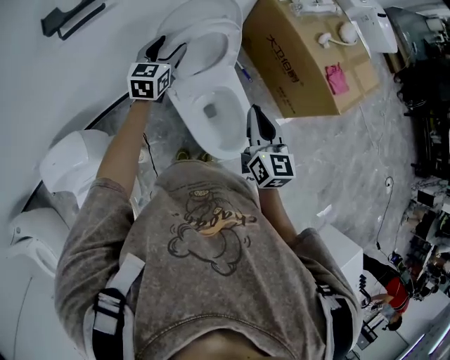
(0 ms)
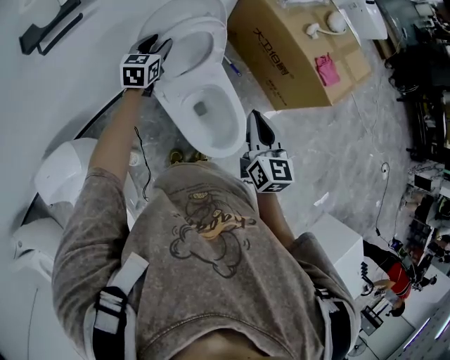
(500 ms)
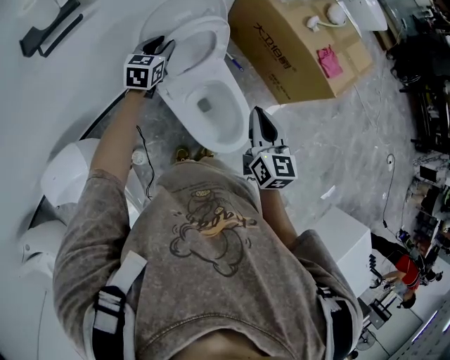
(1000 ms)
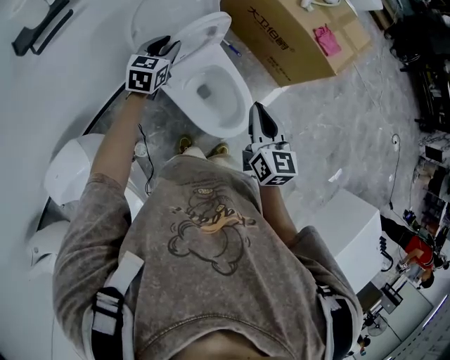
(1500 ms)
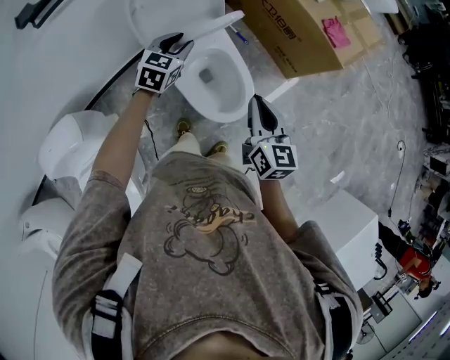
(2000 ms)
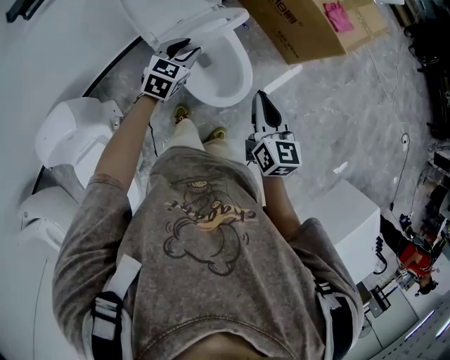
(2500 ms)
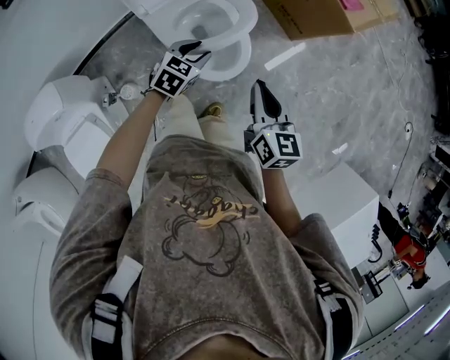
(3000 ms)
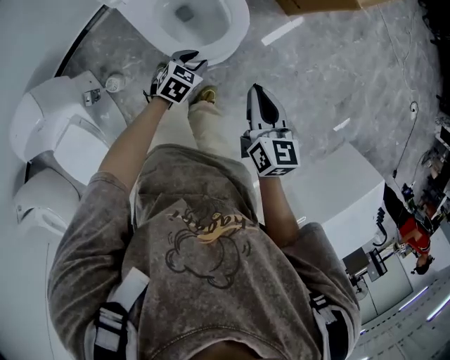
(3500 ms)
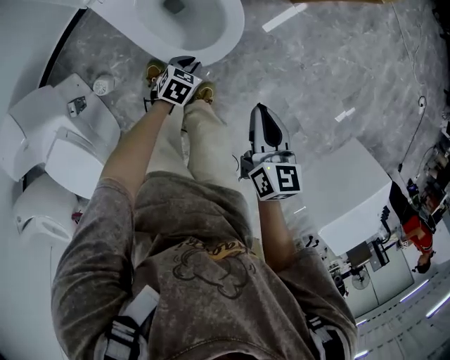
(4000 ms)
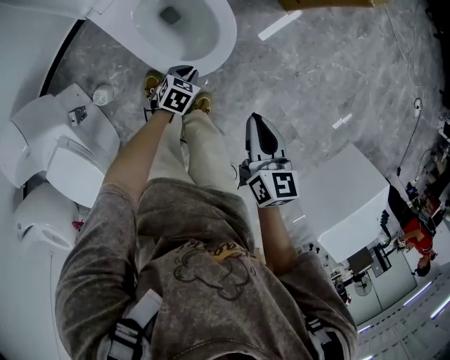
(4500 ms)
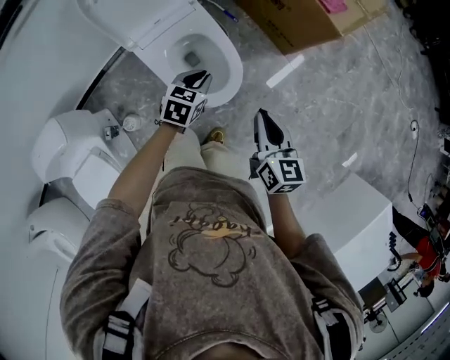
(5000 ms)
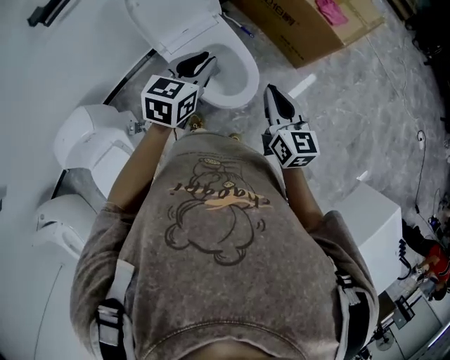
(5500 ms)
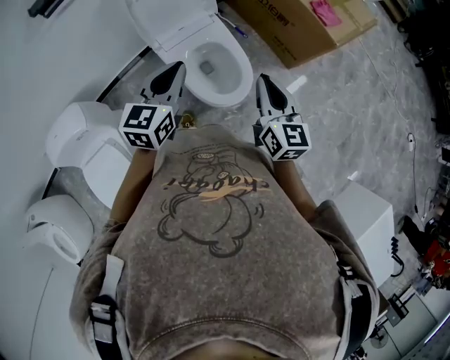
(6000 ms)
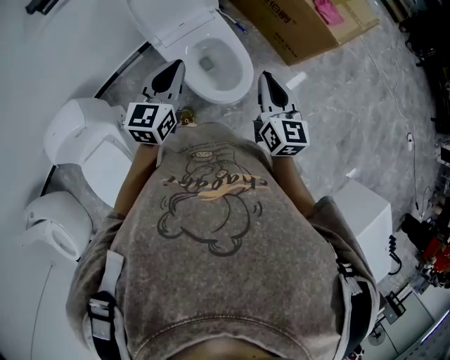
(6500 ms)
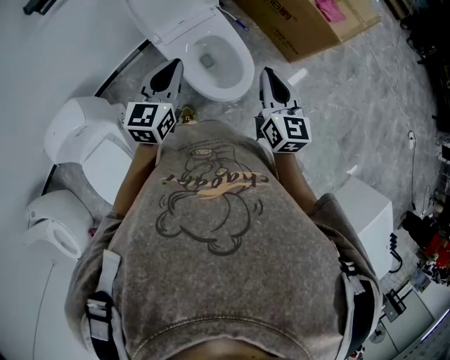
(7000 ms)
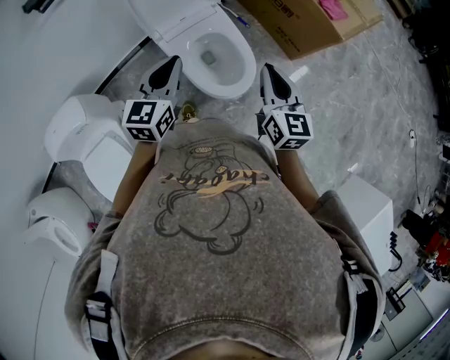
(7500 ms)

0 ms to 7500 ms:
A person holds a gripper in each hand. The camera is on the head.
0 ms to 2000 ms: The left gripper travels to the right, backward and downward by approximately 15 cm, turns by roughly 20 degrees, and closes; the right gripper moves backward and to the right, approximately 10 cm.
2000 ms to 4000 ms: The left gripper goes about 50 cm downward, to the right and backward, and changes its angle by about 40 degrees. Meanwhile the right gripper heads downward and to the right, covering some 30 cm, and changes its angle by roughly 20 degrees.
4000 ms to 5500 ms: The right gripper shifts about 25 cm upward, and rotates roughly 20 degrees; the left gripper shifts roughly 50 cm upward, and tips its fingers upward by roughly 30 degrees.
5500 ms to 7500 ms: The left gripper is displaced to the left by approximately 10 cm.

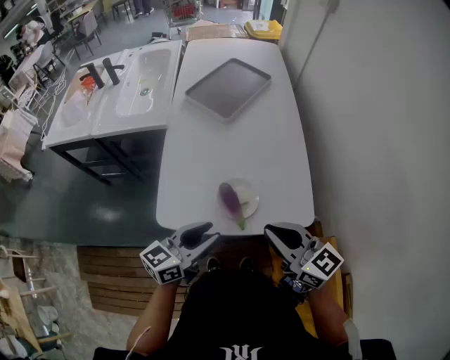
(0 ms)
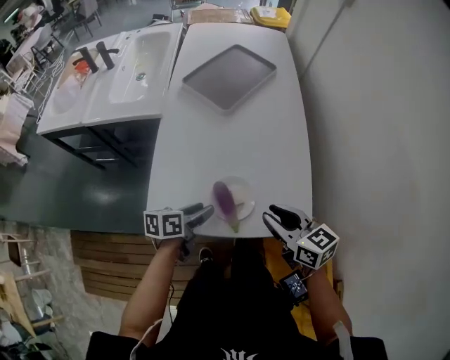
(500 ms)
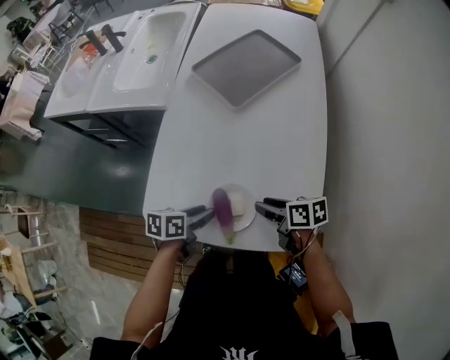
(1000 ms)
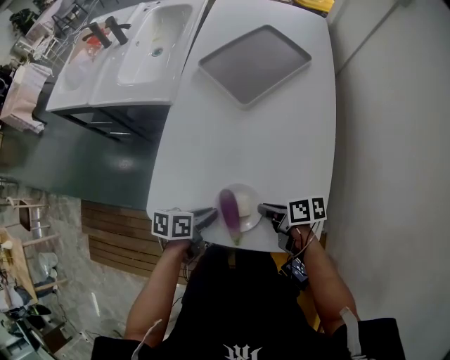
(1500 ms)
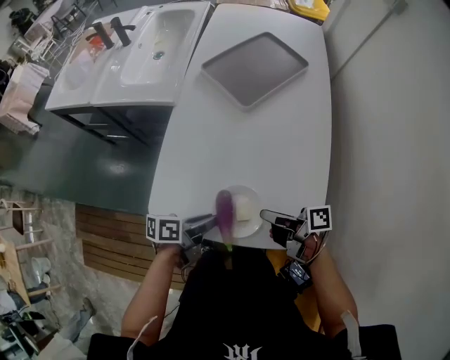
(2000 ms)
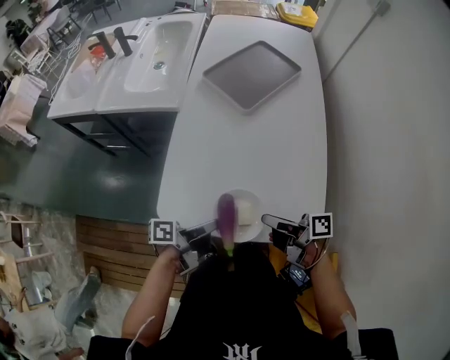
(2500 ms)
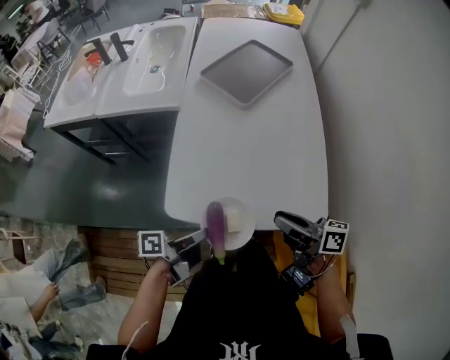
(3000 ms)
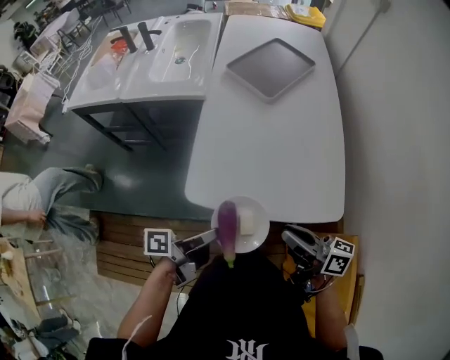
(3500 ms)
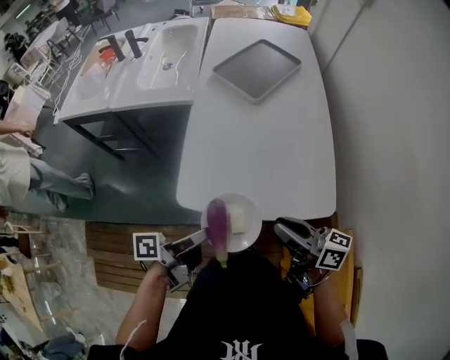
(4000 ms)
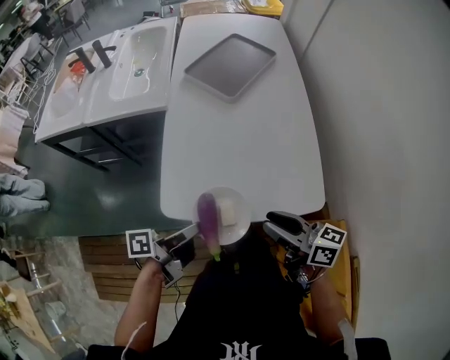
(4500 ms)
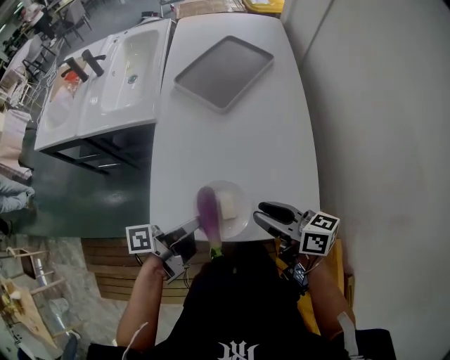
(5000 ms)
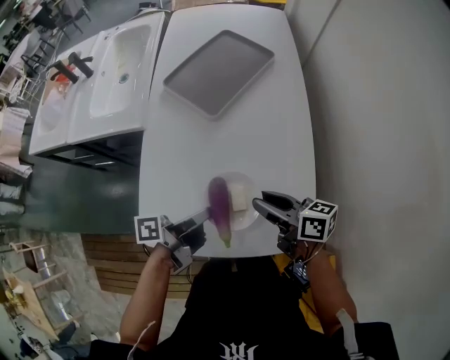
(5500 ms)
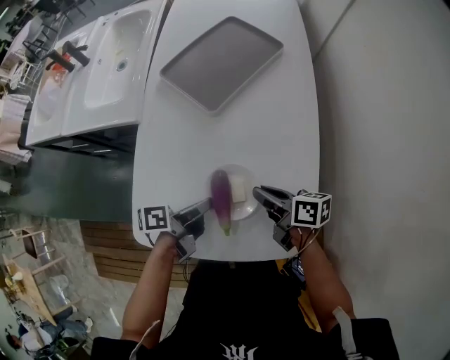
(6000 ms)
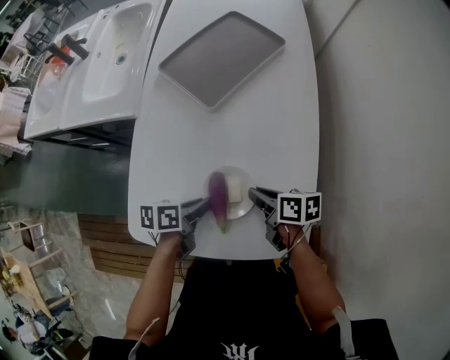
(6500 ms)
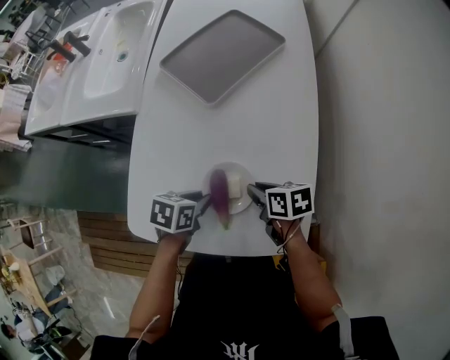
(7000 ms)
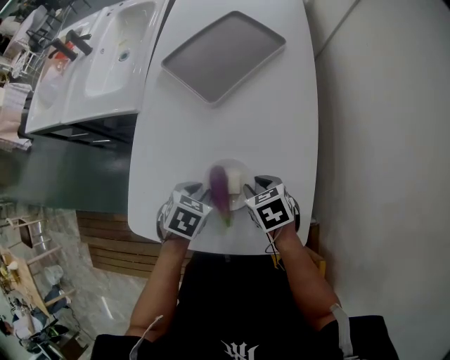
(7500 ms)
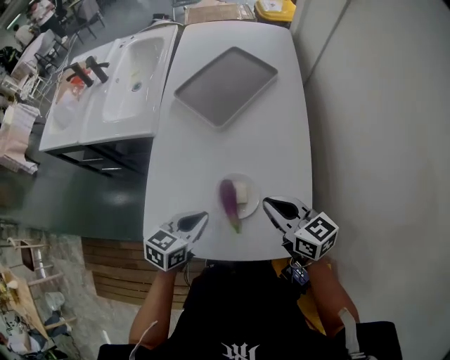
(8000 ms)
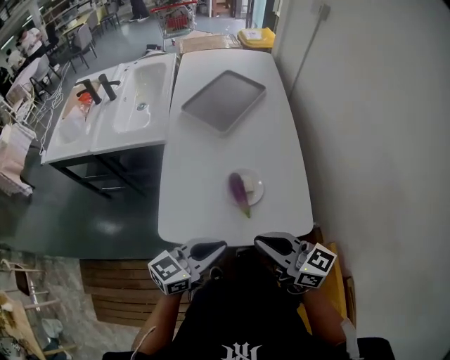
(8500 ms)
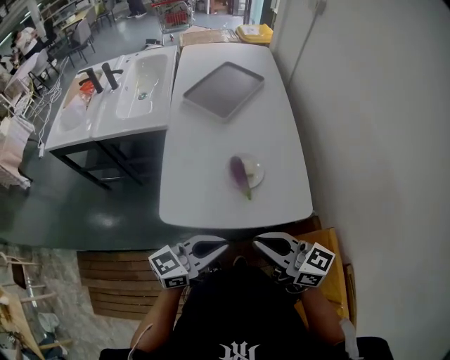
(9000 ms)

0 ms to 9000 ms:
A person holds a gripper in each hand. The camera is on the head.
0 ms to 2000 ms: The right gripper goes roughly 15 cm downward, rotates around the line of its fingers by about 70 degrees, clockwise from behind, and opens and closes again.
2000 ms to 4500 ms: The right gripper ends up approximately 15 cm from where it was, swivels about 40 degrees, and opens its fingers.
4500 ms to 7000 ms: The right gripper changes place by approximately 30 cm, and tips its fingers downward by roughly 40 degrees.
7000 ms to 9000 ms: The right gripper ends up about 40 cm from where it was, and tips its fingers upward by about 40 degrees.

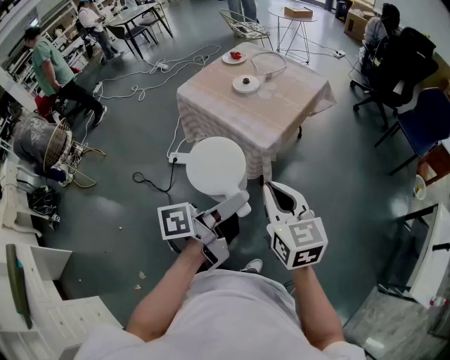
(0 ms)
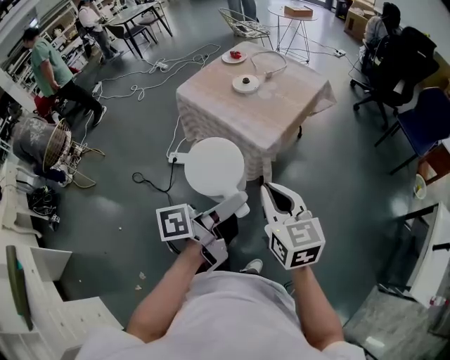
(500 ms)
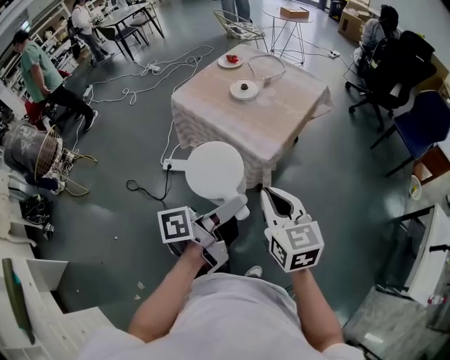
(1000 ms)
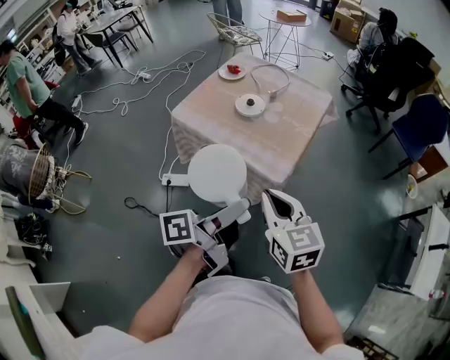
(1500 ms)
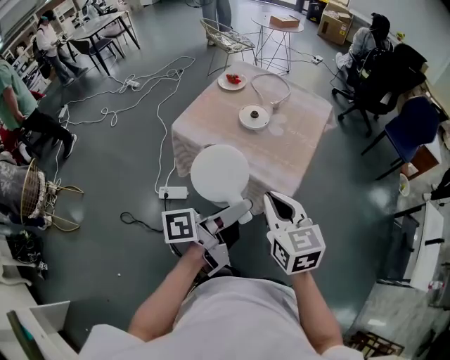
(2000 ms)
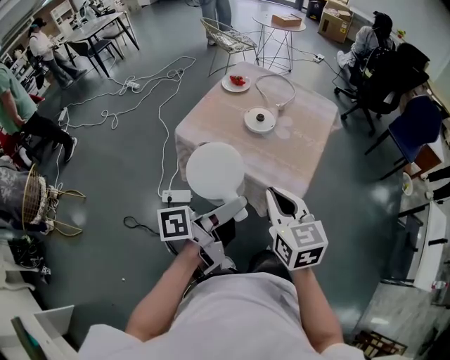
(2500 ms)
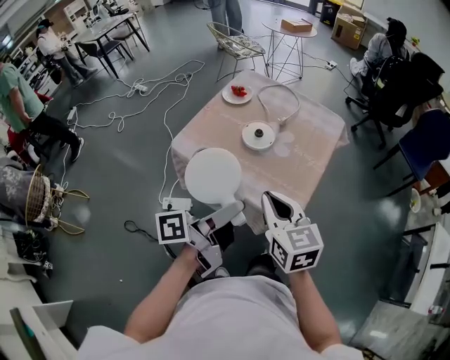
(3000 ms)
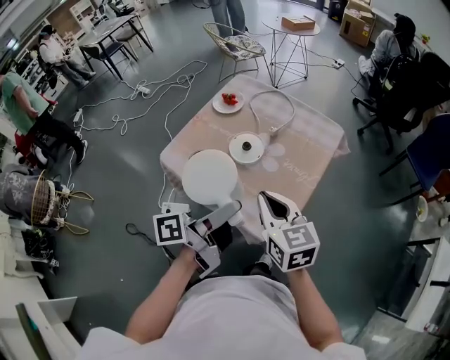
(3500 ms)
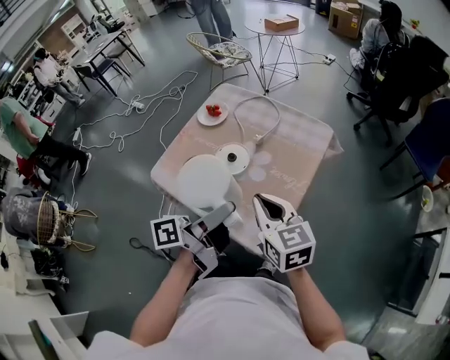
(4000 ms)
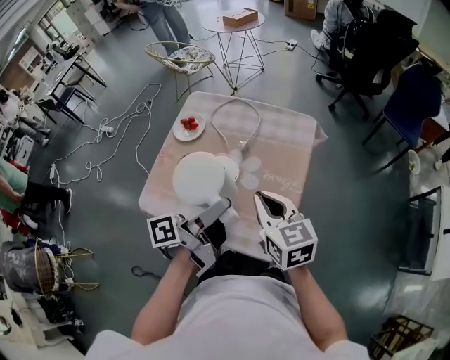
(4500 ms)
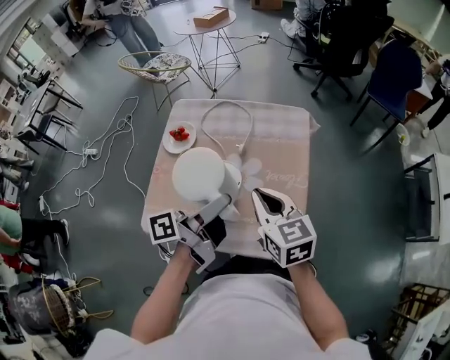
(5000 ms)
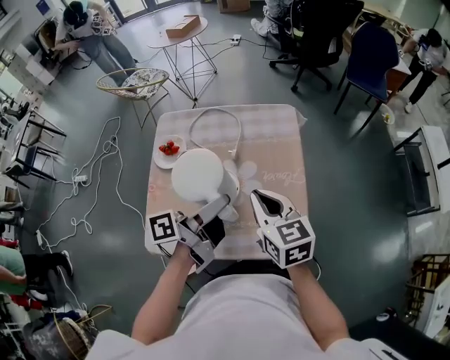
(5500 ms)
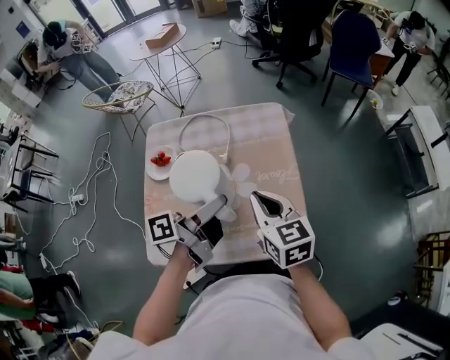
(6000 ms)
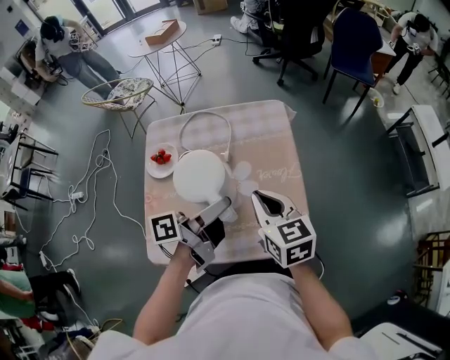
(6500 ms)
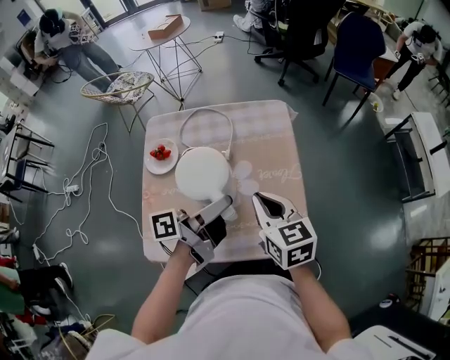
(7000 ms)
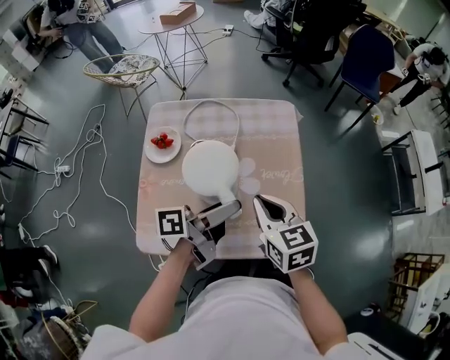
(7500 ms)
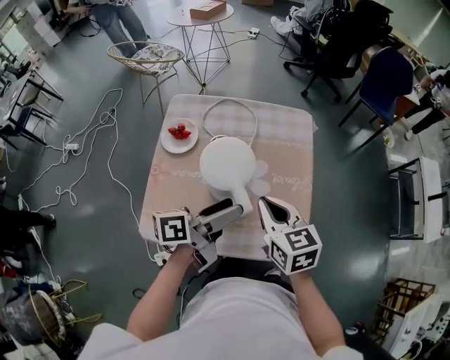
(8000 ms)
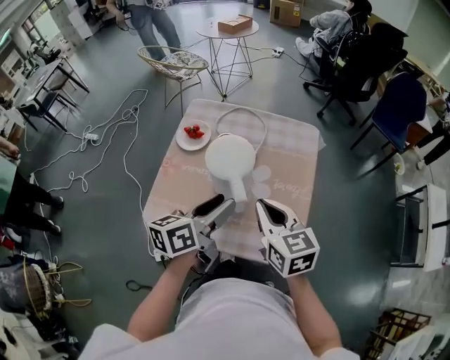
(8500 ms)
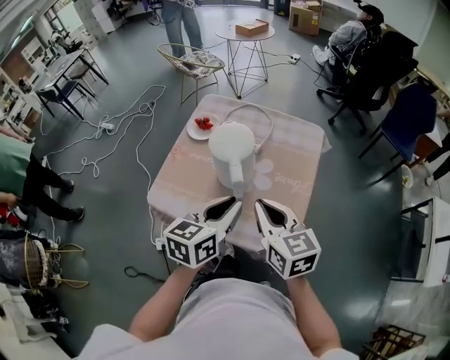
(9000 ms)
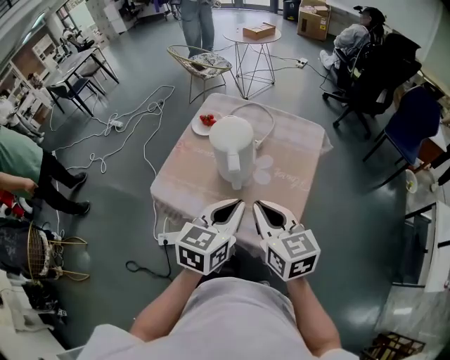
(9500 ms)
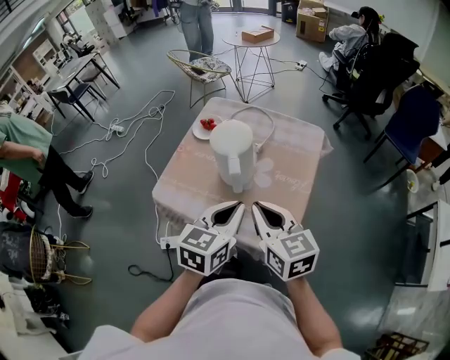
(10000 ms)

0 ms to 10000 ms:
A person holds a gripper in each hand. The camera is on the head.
0 ms to 2000 ms: The right gripper shifts by some 25 cm.
2000 ms to 4000 ms: The right gripper changes place by about 25 cm.
4000 ms to 6000 ms: The right gripper changes place by approximately 10 cm, and rotates roughly 40 degrees.
8000 ms to 10000 ms: The right gripper moves some 15 cm, and changes its angle by some 20 degrees.
